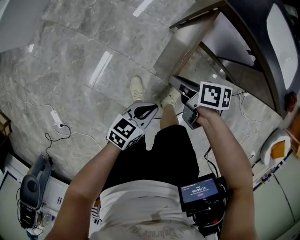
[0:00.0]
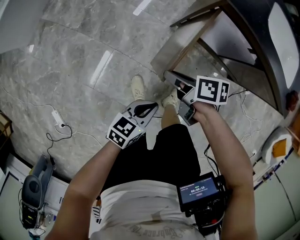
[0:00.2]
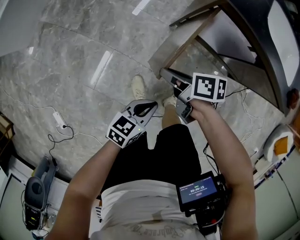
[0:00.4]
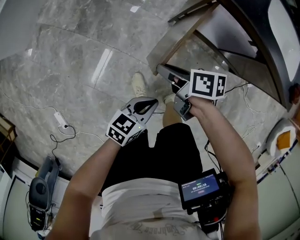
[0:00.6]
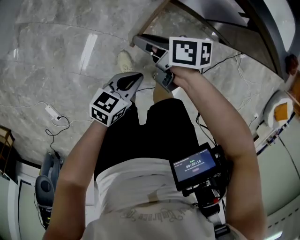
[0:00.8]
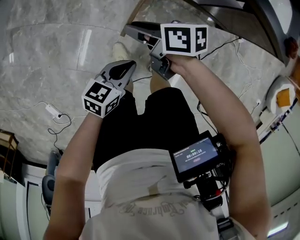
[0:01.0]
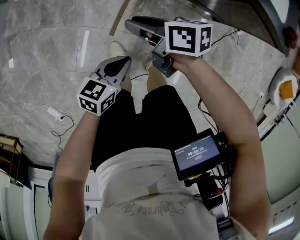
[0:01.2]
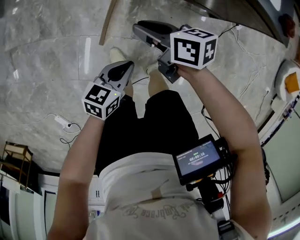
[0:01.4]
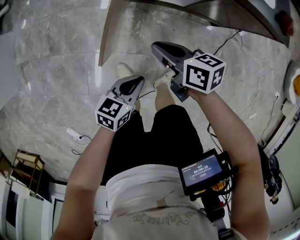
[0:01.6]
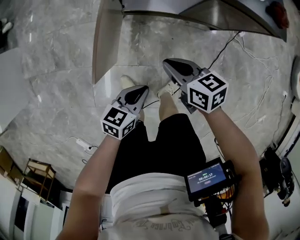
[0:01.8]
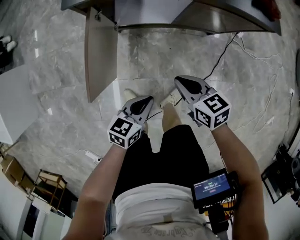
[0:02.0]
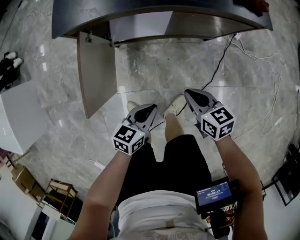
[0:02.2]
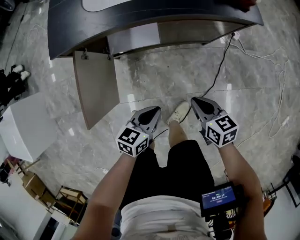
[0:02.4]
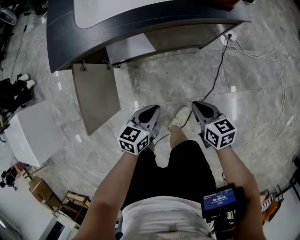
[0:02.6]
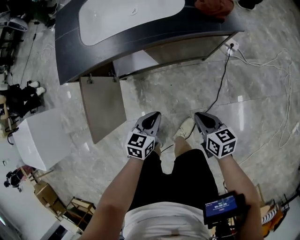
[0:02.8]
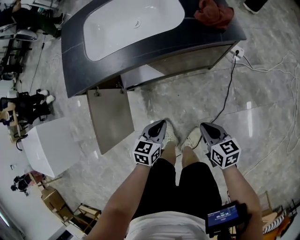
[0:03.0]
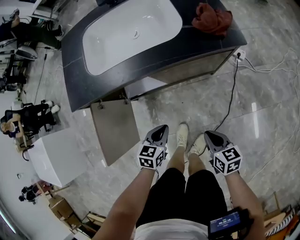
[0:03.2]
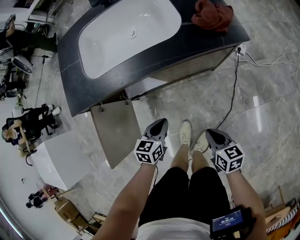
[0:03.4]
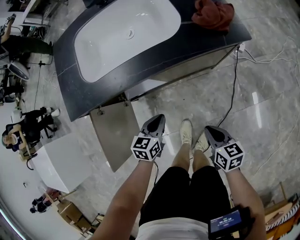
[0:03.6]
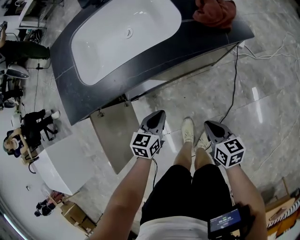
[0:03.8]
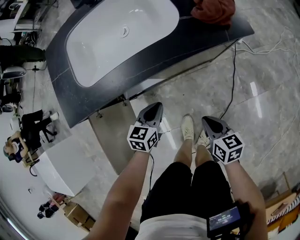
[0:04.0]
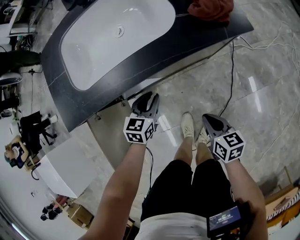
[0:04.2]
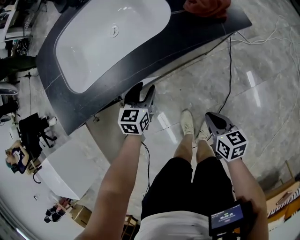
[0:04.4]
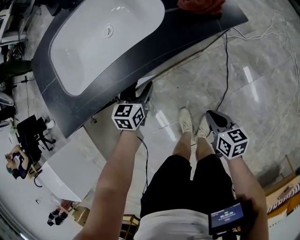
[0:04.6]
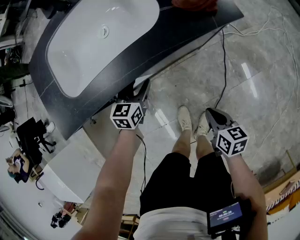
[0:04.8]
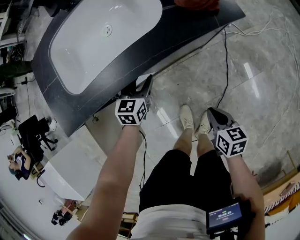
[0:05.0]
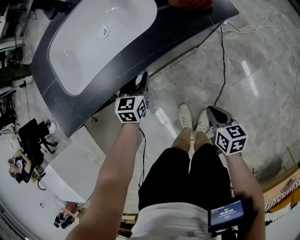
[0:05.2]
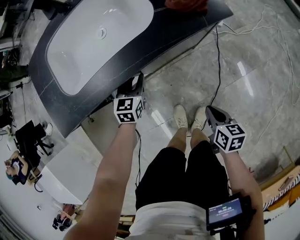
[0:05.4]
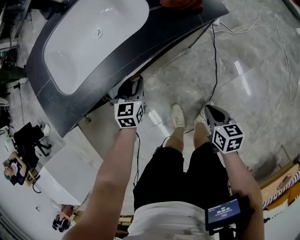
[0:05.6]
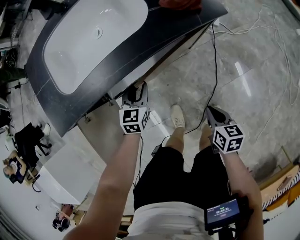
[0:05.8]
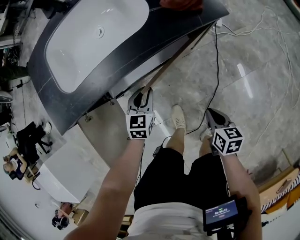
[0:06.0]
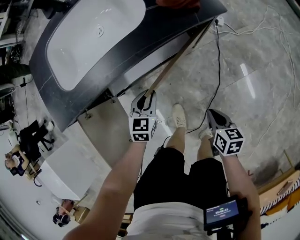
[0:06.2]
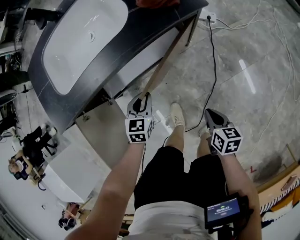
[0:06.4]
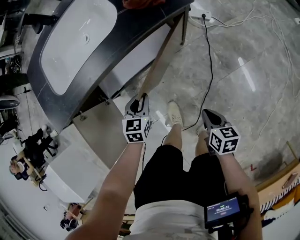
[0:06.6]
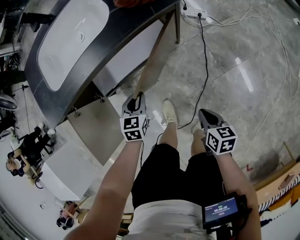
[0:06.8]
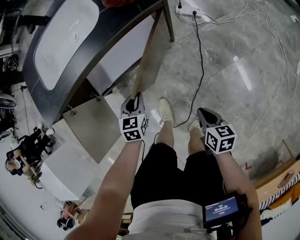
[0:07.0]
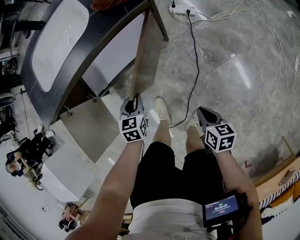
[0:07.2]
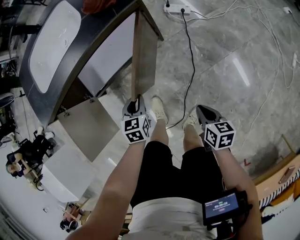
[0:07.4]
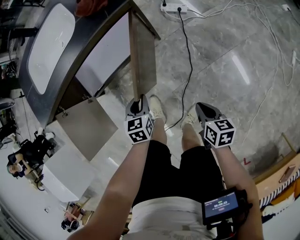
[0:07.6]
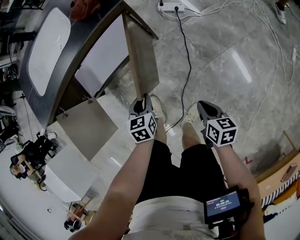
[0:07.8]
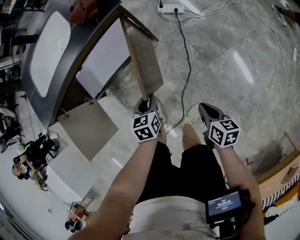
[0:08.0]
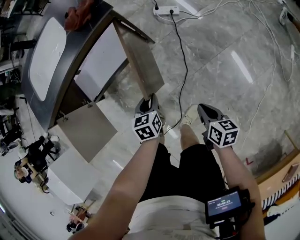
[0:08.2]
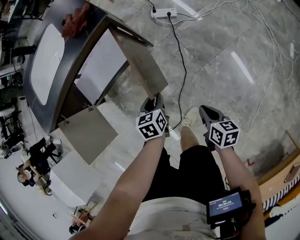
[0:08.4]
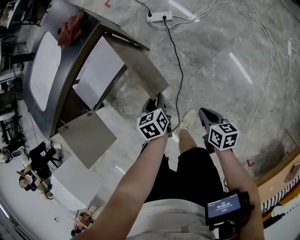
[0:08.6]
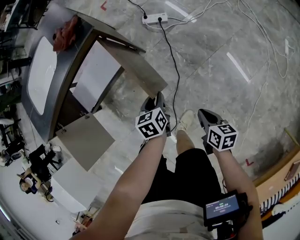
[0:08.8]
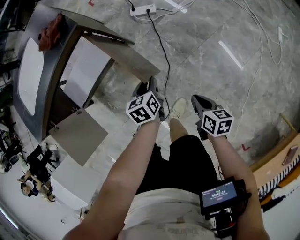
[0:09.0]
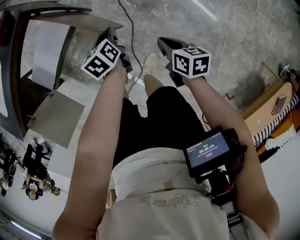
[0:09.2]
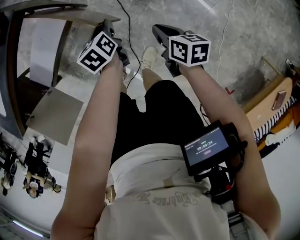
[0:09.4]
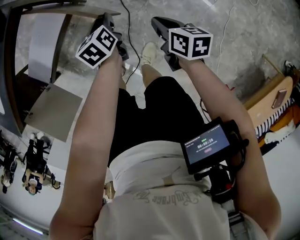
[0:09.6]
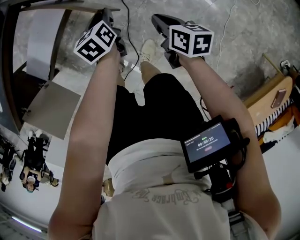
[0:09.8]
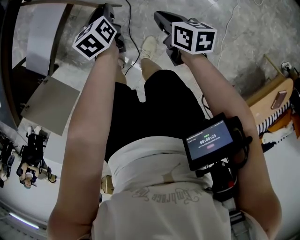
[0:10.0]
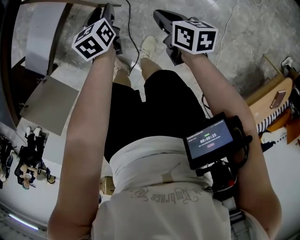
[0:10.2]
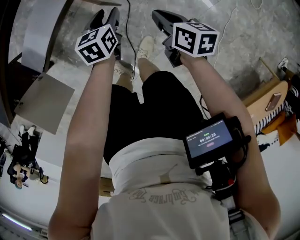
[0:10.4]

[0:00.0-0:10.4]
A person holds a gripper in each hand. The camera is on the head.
0:00.0 to 0:01.4: The right gripper changes place by approximately 5 cm, and turns by approximately 20 degrees.
0:01.4 to 0:03.0: The left gripper travels to the right and forward by roughly 35 cm, and changes its angle by some 20 degrees, while the right gripper goes approximately 50 cm to the right, and changes its angle by some 30 degrees.
0:03.0 to 0:04.4: The right gripper goes some 10 cm forward and downward; the left gripper moves forward, some 25 cm, and opens.
0:04.4 to 0:06.0: The left gripper shifts roughly 5 cm backward, and closes its fingers; the right gripper travels to the right by approximately 5 cm.
0:06.0 to 0:07.4: The right gripper moves to the right and backward, about 20 cm; the left gripper is displaced backward and to the right by roughly 20 cm.
0:07.4 to 0:09.0: The left gripper heads to the right, covering roughly 25 cm, while the right gripper goes some 15 cm to the right.
0:09.0 to 0:10.4: The right gripper shifts by roughly 5 cm.

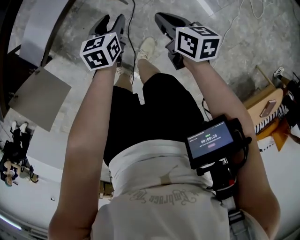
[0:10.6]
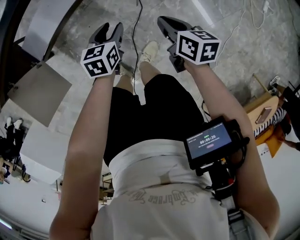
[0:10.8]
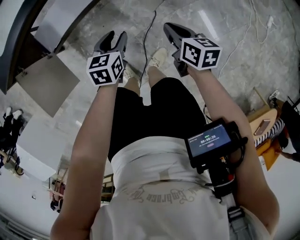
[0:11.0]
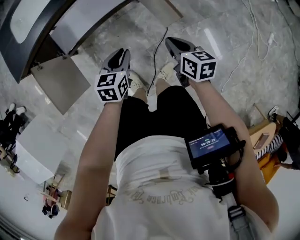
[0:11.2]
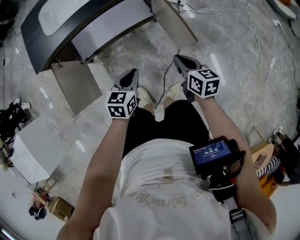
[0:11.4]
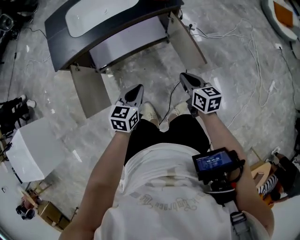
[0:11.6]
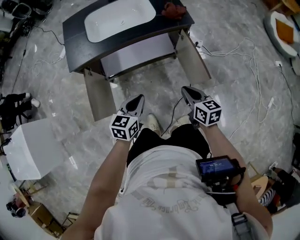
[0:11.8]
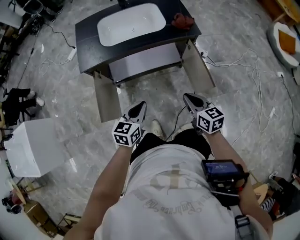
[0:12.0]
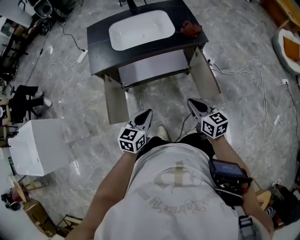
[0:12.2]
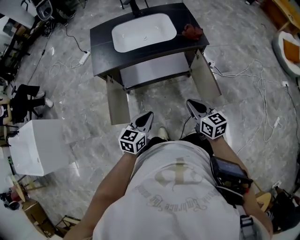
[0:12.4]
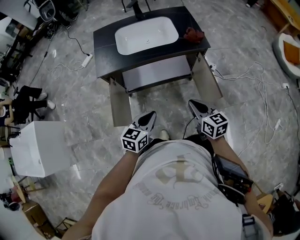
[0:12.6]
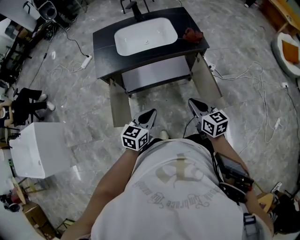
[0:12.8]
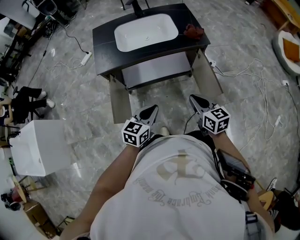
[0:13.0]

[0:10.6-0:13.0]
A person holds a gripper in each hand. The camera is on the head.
0:10.6 to 0:11.8: Both grippers move to the left and upward, roughly 40 cm. The left gripper changes its angle by about 20 degrees, and closes its fingers. The right gripper rotates some 30 degrees.
0:11.8 to 0:13.0: The right gripper is displaced upward and to the left by some 10 cm, while the left gripper moves upward, roughly 5 cm.

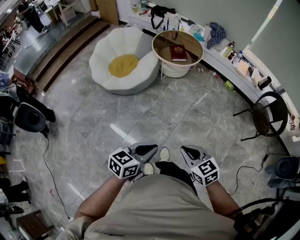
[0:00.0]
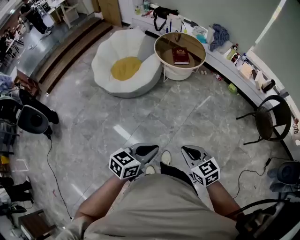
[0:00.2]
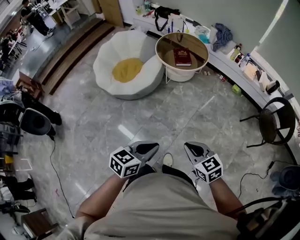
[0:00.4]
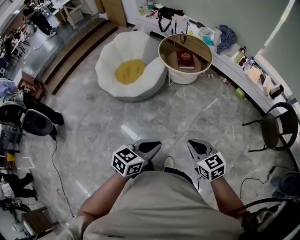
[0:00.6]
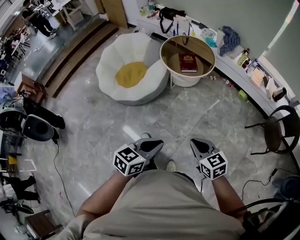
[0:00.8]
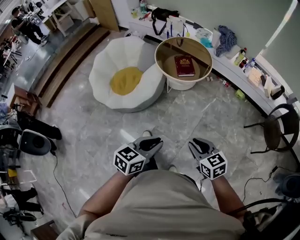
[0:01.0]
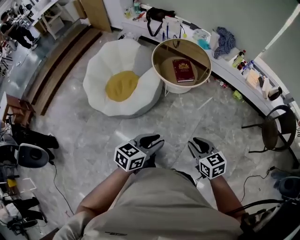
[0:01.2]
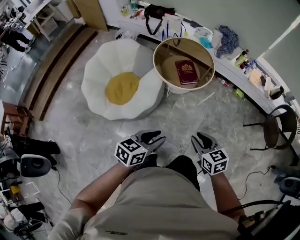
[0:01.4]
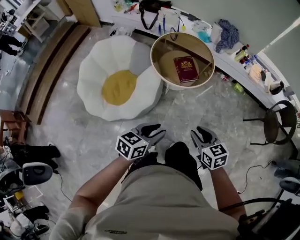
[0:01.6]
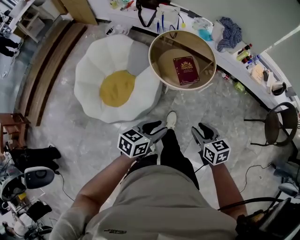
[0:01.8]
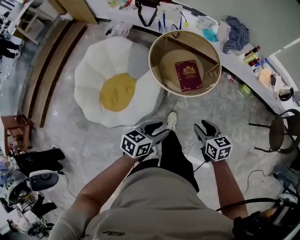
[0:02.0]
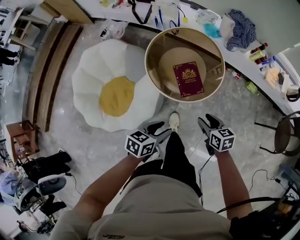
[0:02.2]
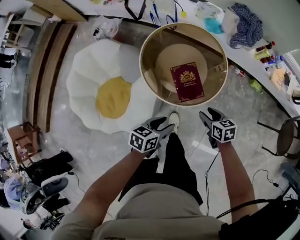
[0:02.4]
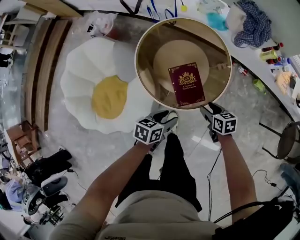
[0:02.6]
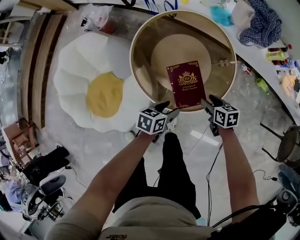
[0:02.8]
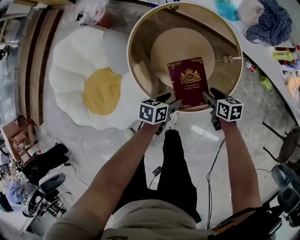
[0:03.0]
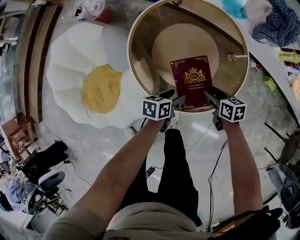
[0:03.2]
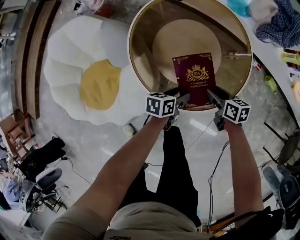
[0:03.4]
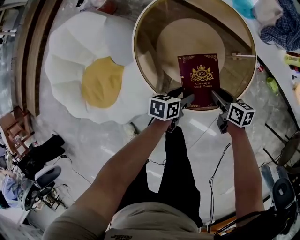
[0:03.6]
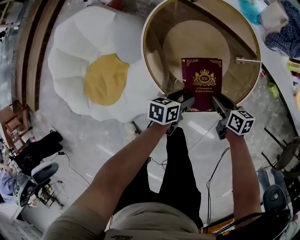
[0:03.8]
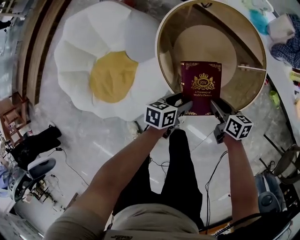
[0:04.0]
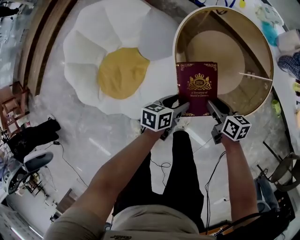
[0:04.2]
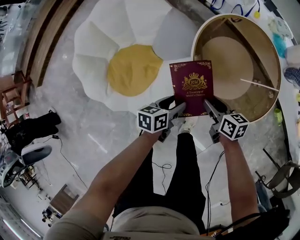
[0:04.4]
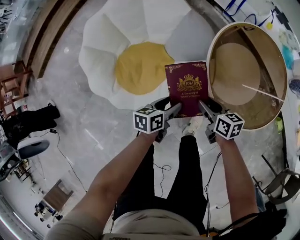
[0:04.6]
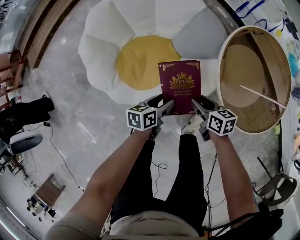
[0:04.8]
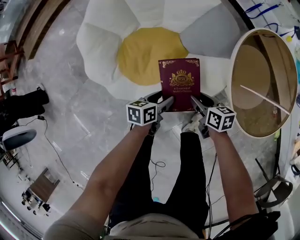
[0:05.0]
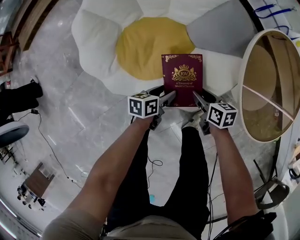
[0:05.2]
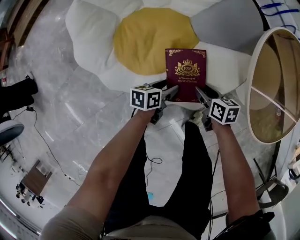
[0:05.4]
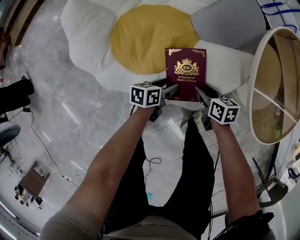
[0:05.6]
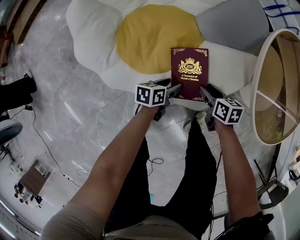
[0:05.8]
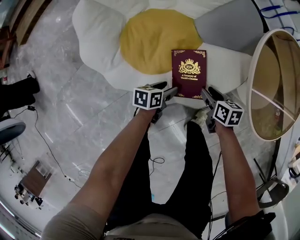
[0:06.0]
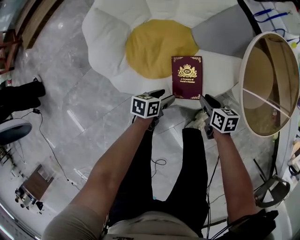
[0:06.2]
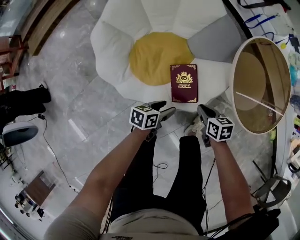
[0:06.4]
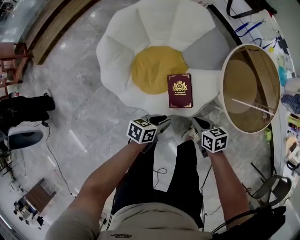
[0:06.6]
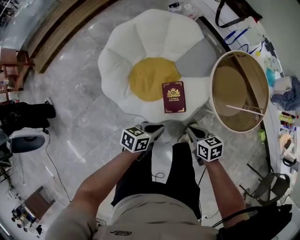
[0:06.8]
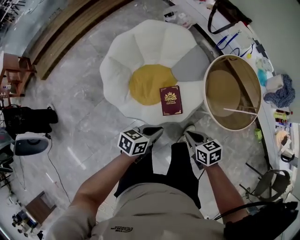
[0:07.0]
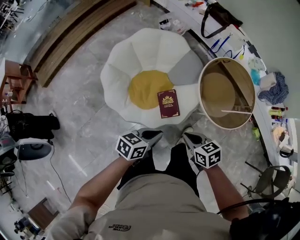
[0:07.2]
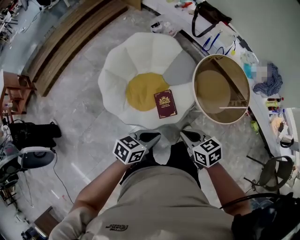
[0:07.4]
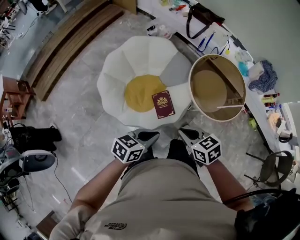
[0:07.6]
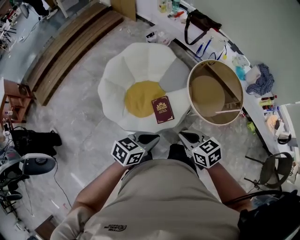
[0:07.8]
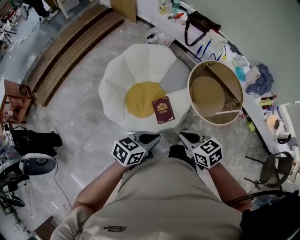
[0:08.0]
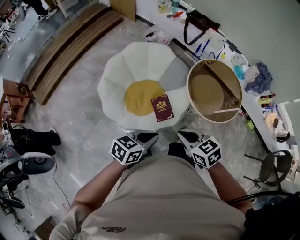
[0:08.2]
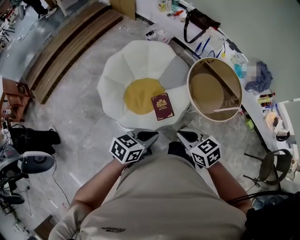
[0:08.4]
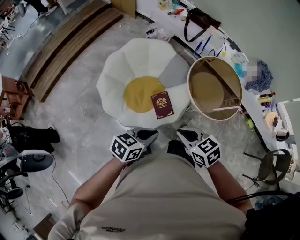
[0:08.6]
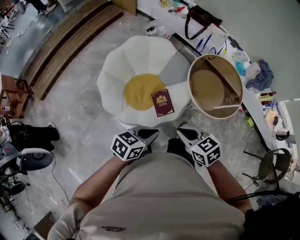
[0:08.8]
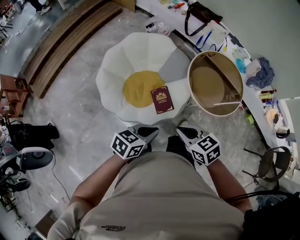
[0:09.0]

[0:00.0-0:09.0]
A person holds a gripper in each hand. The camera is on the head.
0:00.0 to 0:01.6: Both grippers are carried forward, about 50 cm. The right gripper swivels roughly 20 degrees, and opens up. The left gripper opens its fingers.
0:01.6 to 0:03.0: The pair of grippers is taken forward, about 50 cm. The grippers both shift downward by some 40 cm. The left gripper rotates about 30 degrees, and opens up. Meanwhile the right gripper changes its angle by some 30 degrees, and opens its fingers.
0:03.0 to 0:04.4: Both grippers move to the left, some 25 cm. The left gripper rotates approximately 20 degrees.
0:04.4 to 0:06.0: The grippers both shift downward and to the left by roughly 30 cm.
0:06.0 to 0:07.6: The grippers both shift upward by some 60 cm. The right gripper changes its angle by approximately 30 degrees, and closes up; the left gripper rotates about 40 degrees, and closes up.
0:07.6 to 0:09.0: The grippers make only small movements.

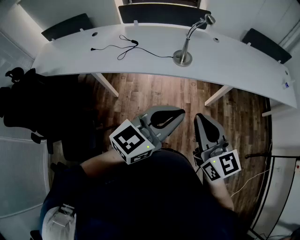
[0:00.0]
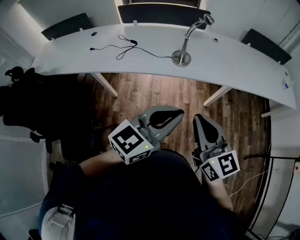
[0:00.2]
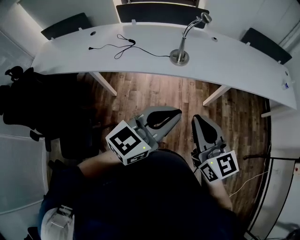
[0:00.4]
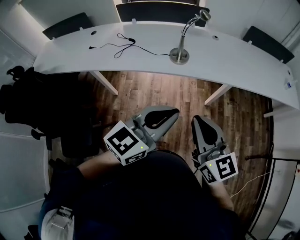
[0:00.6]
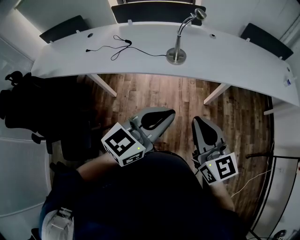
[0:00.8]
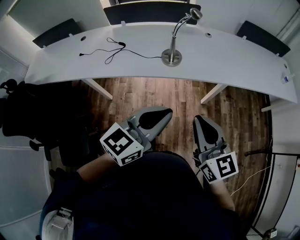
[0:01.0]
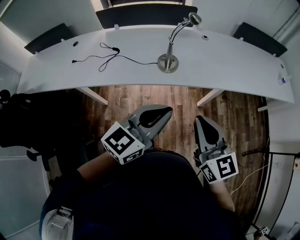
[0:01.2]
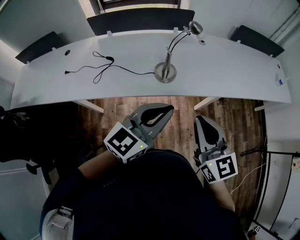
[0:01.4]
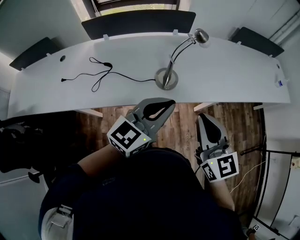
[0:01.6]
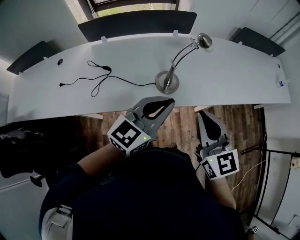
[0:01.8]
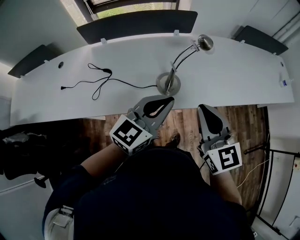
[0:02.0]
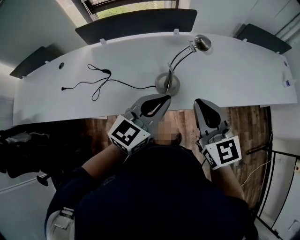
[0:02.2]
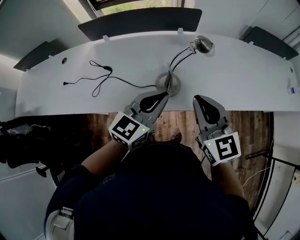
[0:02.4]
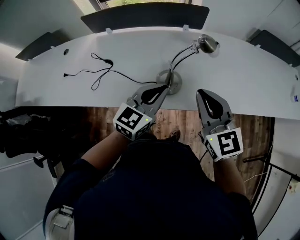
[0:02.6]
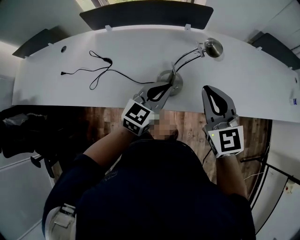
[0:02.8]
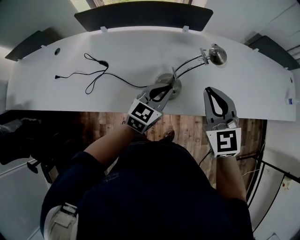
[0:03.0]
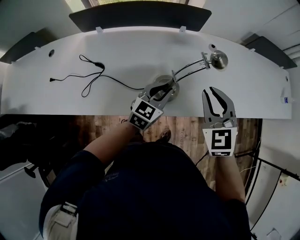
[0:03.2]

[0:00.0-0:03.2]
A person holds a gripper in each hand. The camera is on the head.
0:00.0 to 0:01.6: The grippers both shift forward by roughly 25 cm.
0:01.6 to 0:03.2: The left gripper travels forward and downward by about 30 cm, while the right gripper goes some 25 cm forward, and changes its angle by about 30 degrees.
